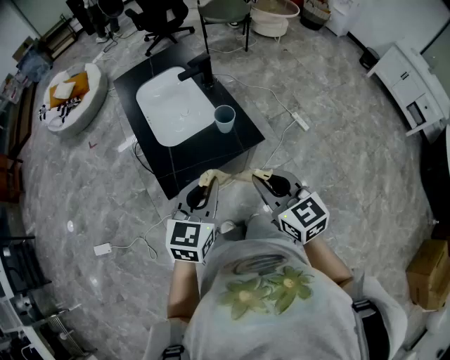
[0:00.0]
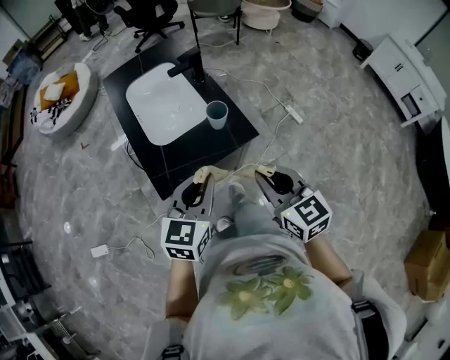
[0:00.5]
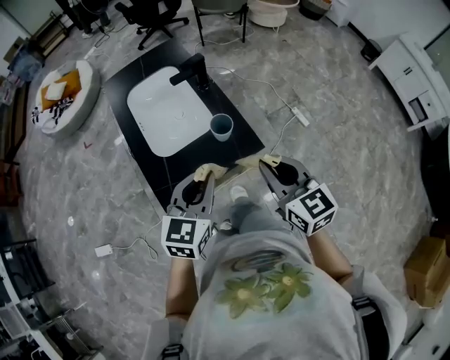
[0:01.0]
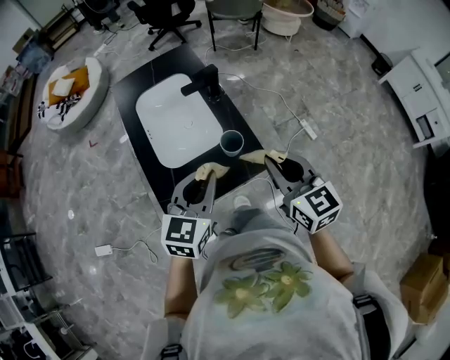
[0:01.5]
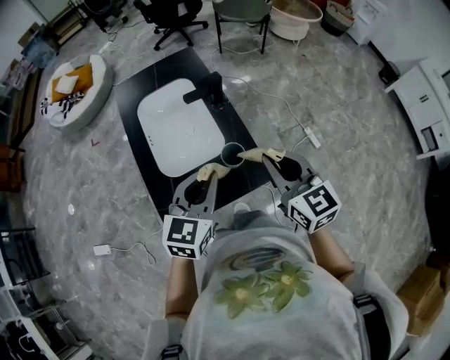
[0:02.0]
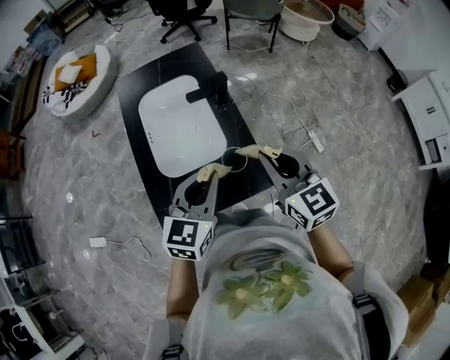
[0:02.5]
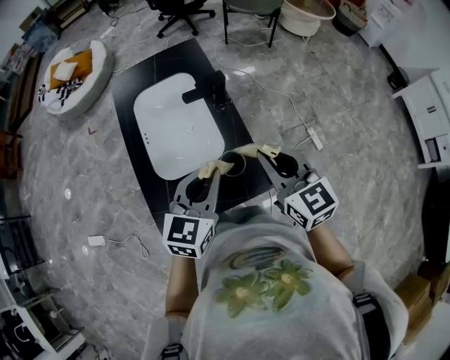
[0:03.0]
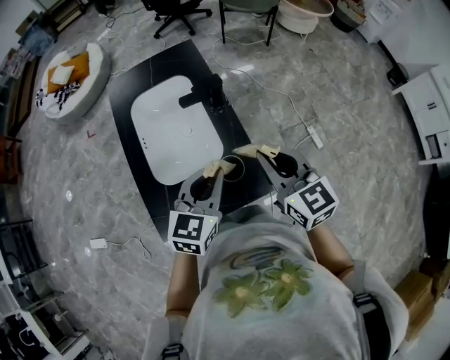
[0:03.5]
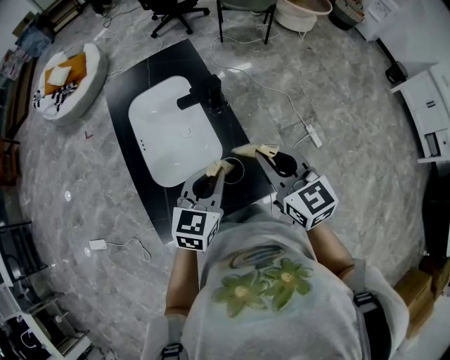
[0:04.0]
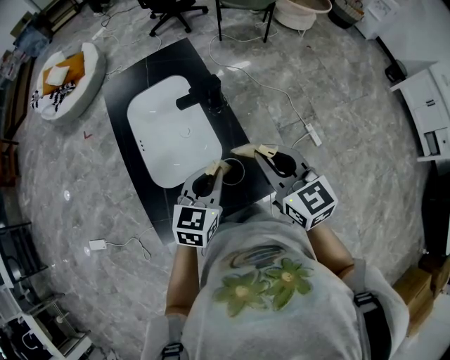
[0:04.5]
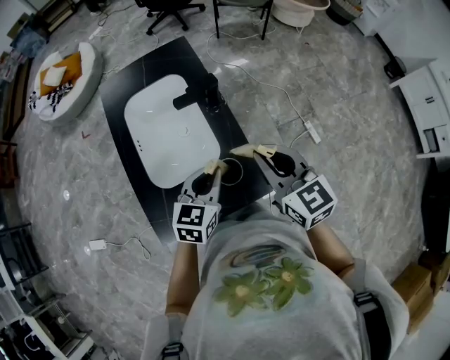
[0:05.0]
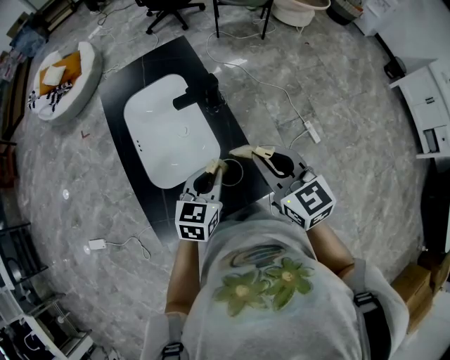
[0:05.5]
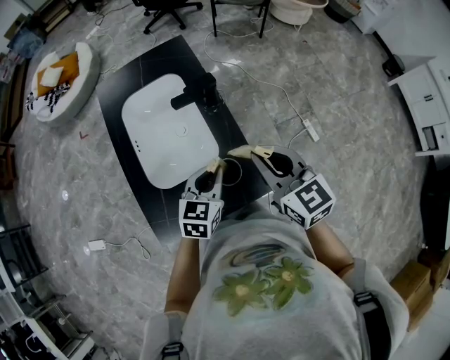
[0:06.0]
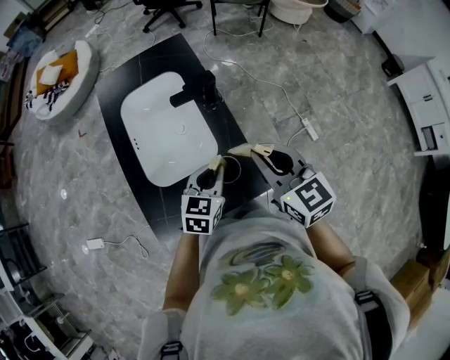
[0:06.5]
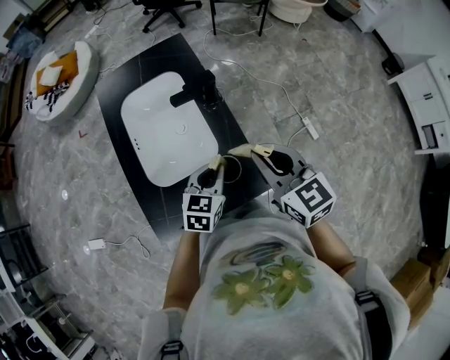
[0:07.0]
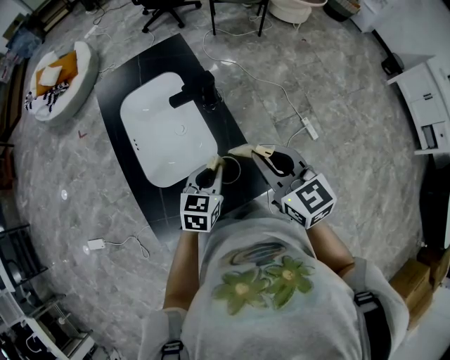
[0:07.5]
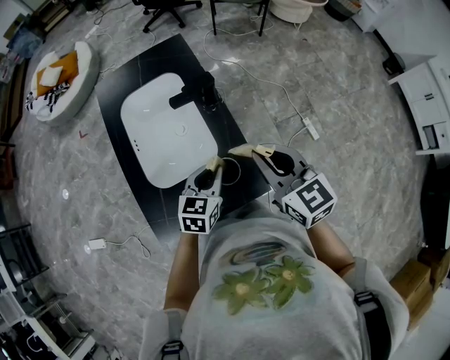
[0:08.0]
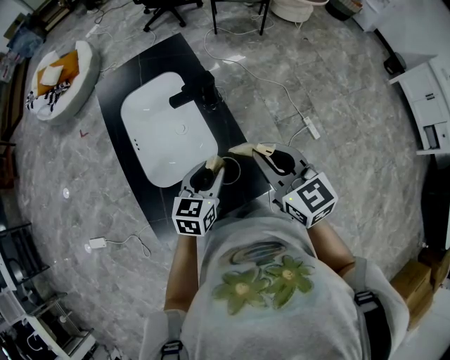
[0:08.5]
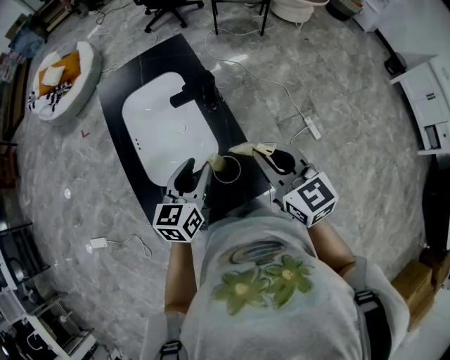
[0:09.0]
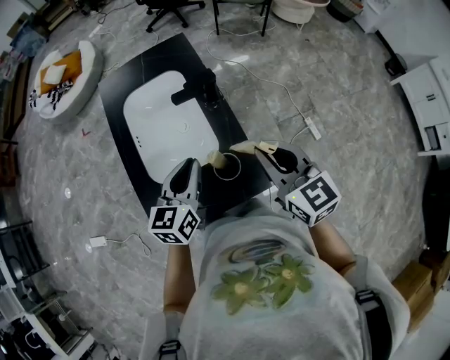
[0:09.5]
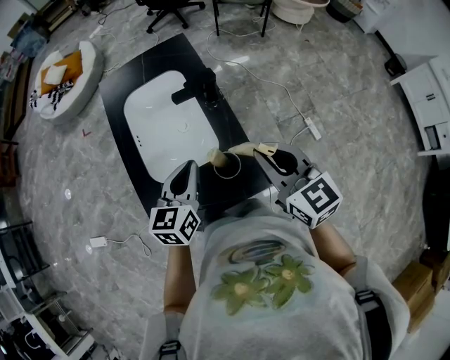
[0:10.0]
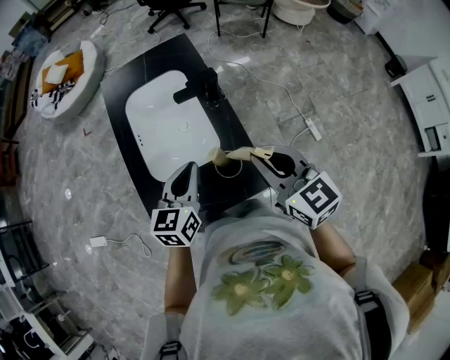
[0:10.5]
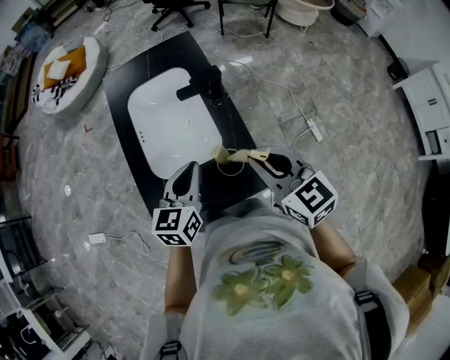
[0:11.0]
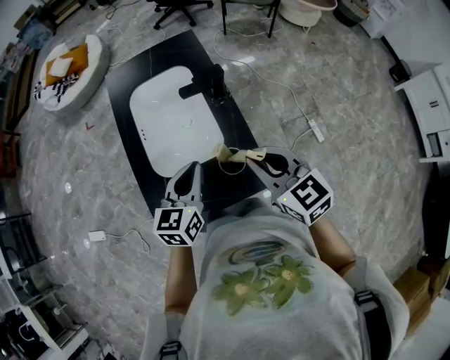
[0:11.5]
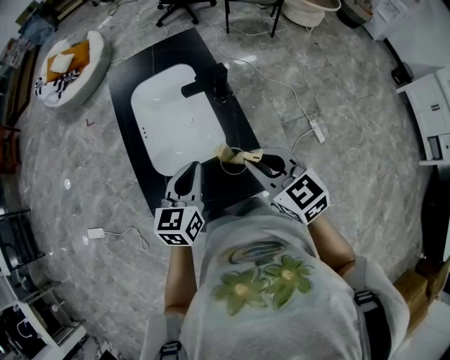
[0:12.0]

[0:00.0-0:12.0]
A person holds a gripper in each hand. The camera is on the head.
0:00.0 to 0:02.0: Both grippers move forward, some 25 cm.
0:02.0 to 0:04.0: The left gripper is displaced forward and downward by approximately 10 cm, while the right gripper heads forward, covering some 10 cm.
0:04.0 to 0:06.0: The left gripper is displaced downward by approximately 5 cm.
0:06.0 to 0:08.0: The grippers make only small movements.
0:08.0 to 0:10.0: The left gripper goes roughly 10 cm upward and to the left, and opens, then closes again.
0:10.0 to 0:12.0: The right gripper ends up about 5 cm from where it was.

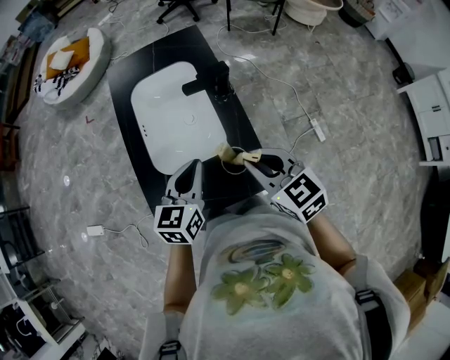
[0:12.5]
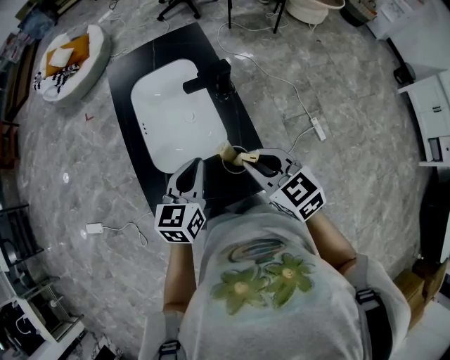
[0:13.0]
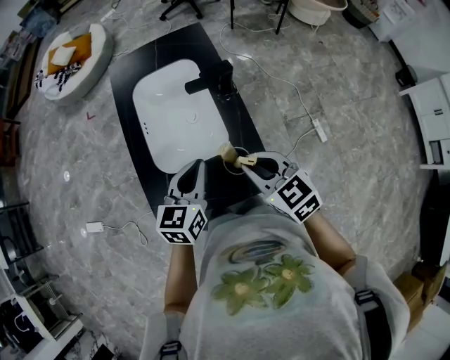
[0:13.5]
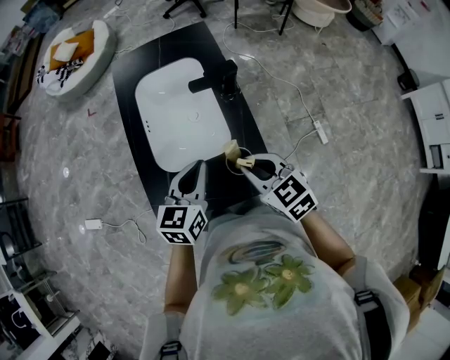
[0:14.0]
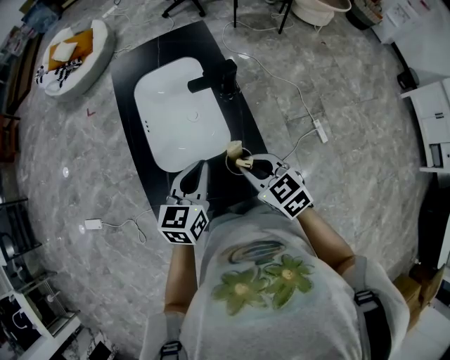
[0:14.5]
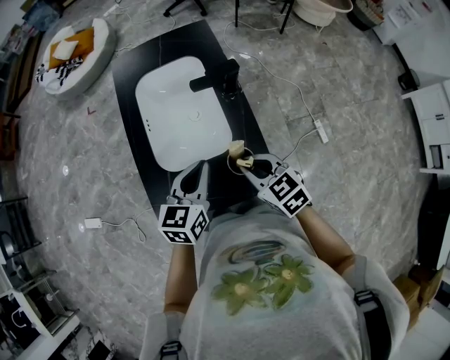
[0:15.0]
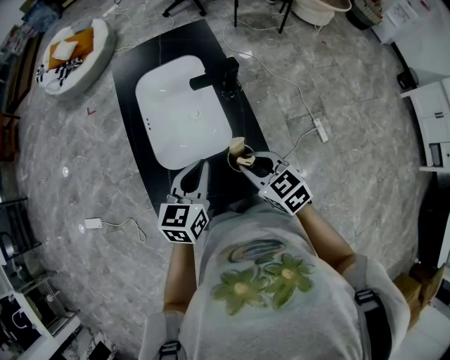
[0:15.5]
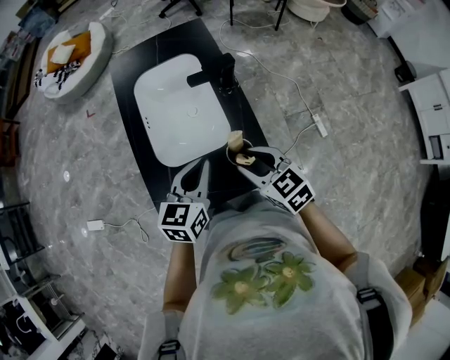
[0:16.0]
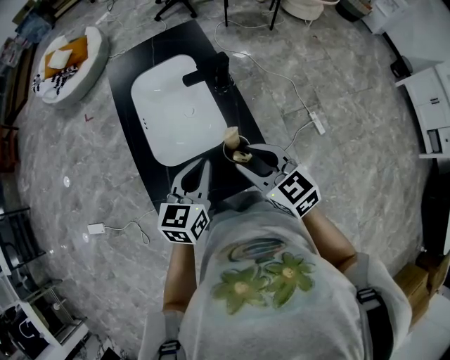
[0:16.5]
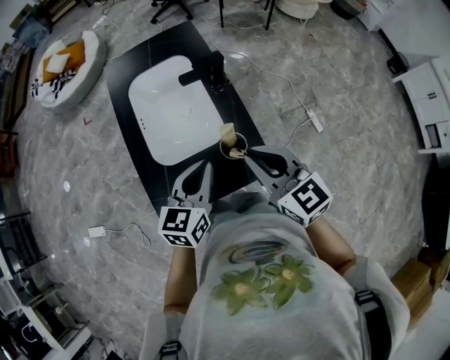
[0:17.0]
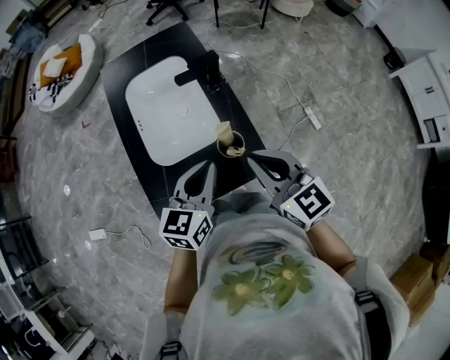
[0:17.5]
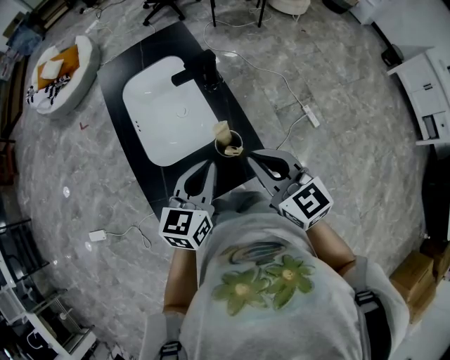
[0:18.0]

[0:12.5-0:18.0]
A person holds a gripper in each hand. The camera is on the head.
0:12.5 to 0:14.5: The right gripper travels downward by some 5 cm.
0:14.5 to 0:16.0: There are only small adjustments of the grippers.
0:16.0 to 0:18.0: The left gripper ends up roughly 5 cm from where it was. The right gripper heads upward, covering about 10 cm, rotates approximately 20 degrees, and closes up.

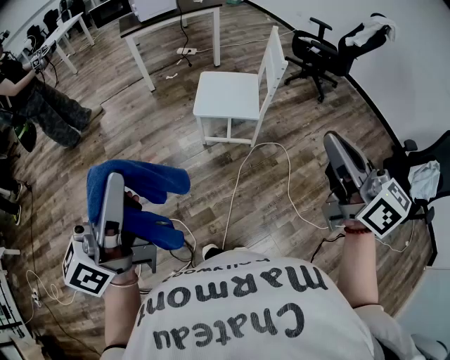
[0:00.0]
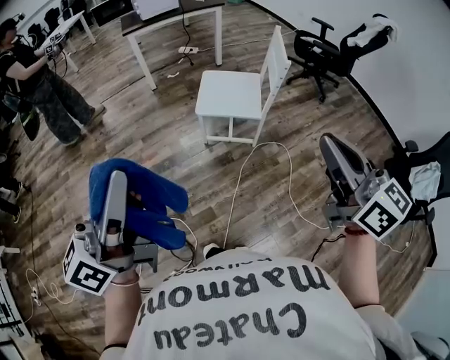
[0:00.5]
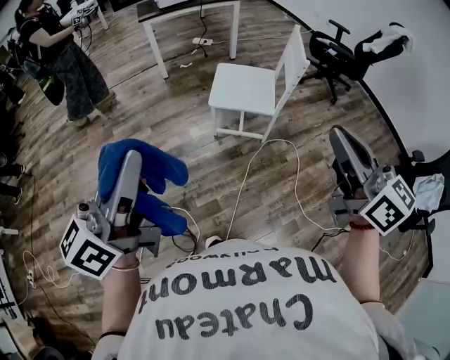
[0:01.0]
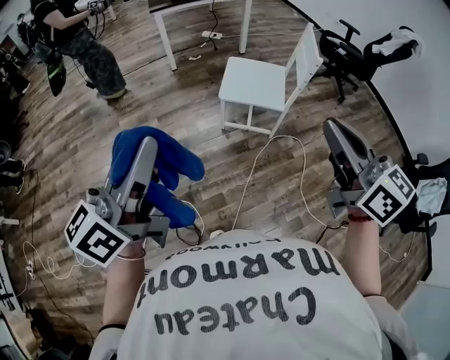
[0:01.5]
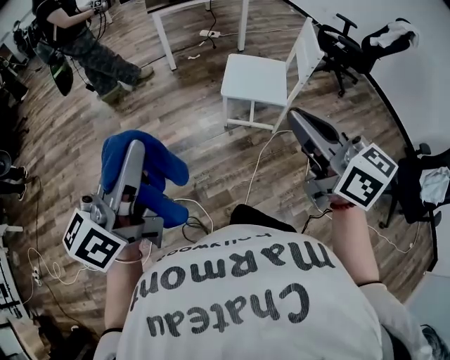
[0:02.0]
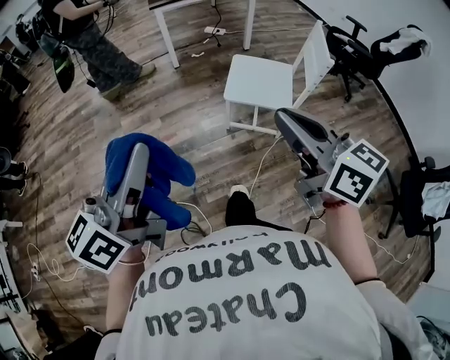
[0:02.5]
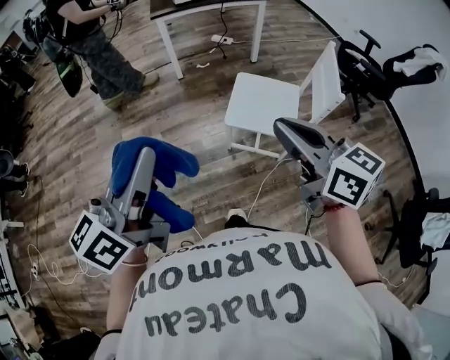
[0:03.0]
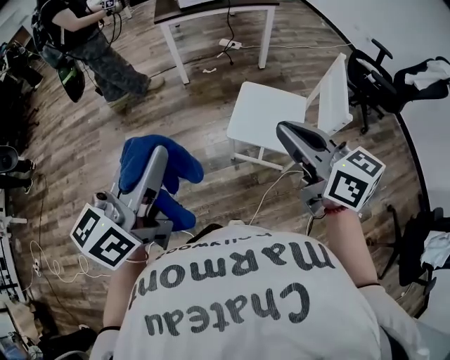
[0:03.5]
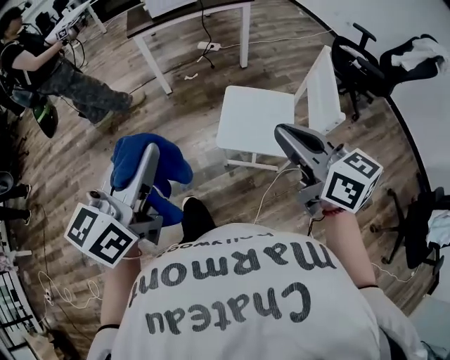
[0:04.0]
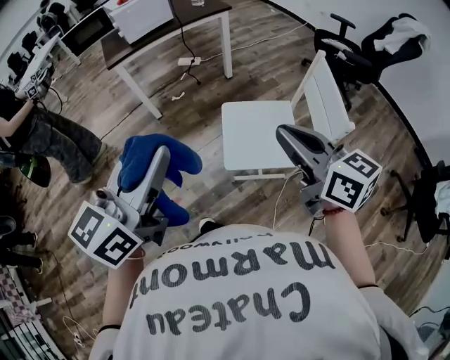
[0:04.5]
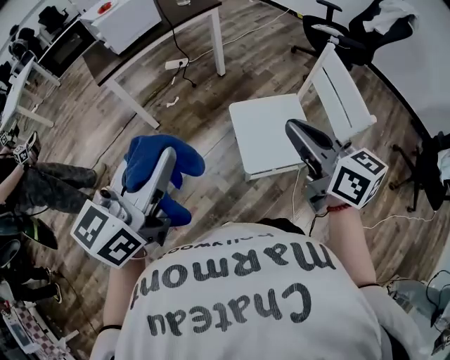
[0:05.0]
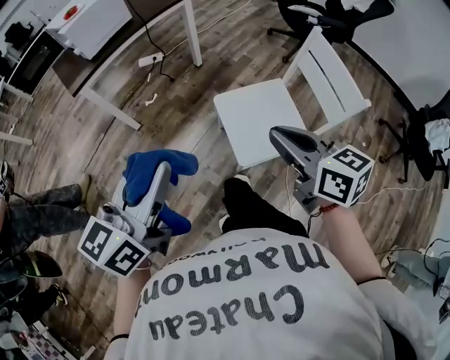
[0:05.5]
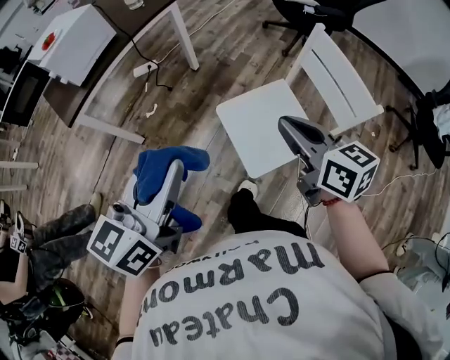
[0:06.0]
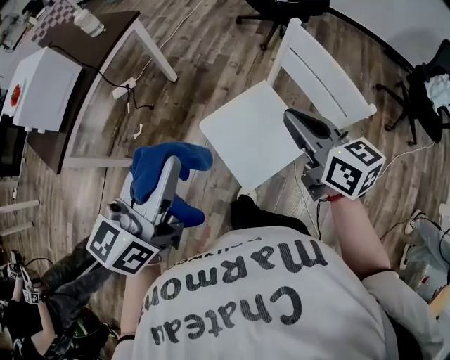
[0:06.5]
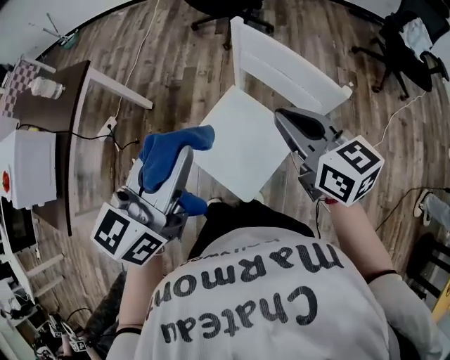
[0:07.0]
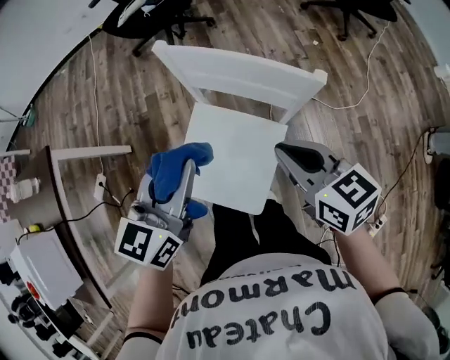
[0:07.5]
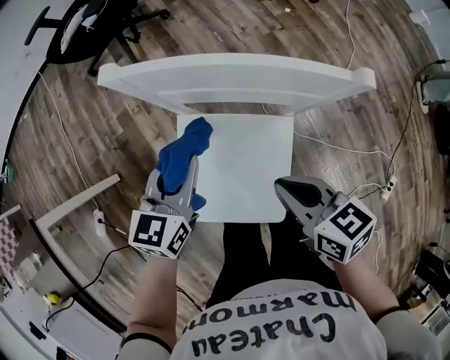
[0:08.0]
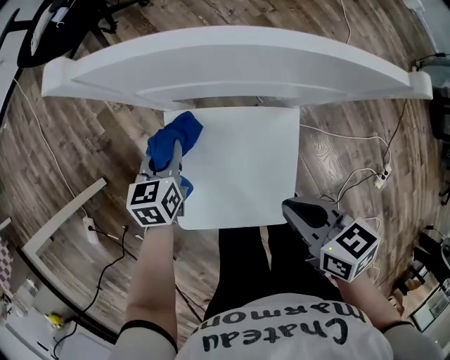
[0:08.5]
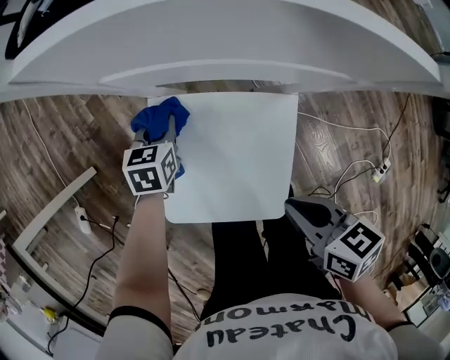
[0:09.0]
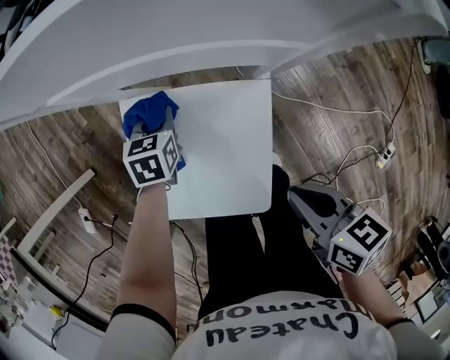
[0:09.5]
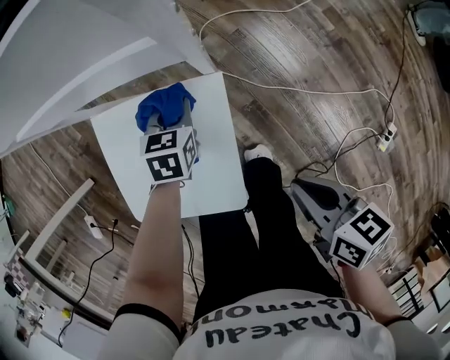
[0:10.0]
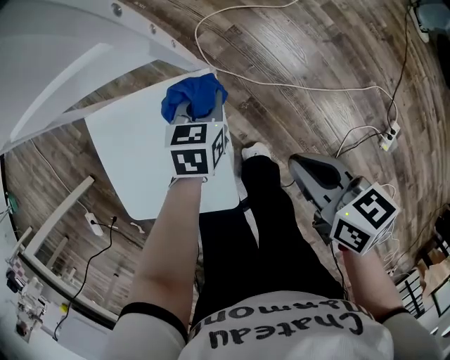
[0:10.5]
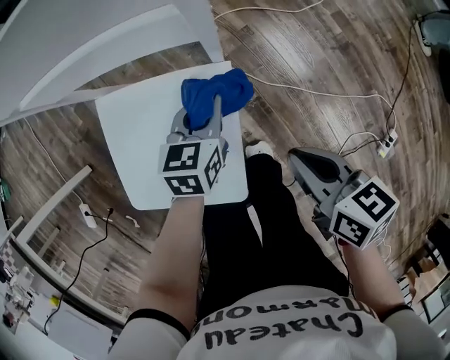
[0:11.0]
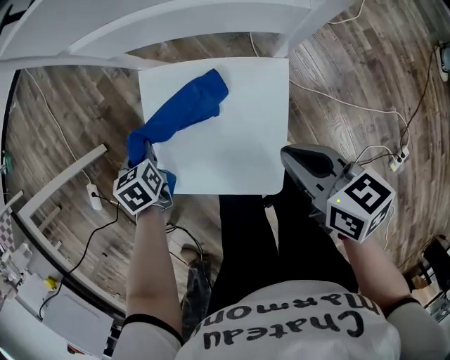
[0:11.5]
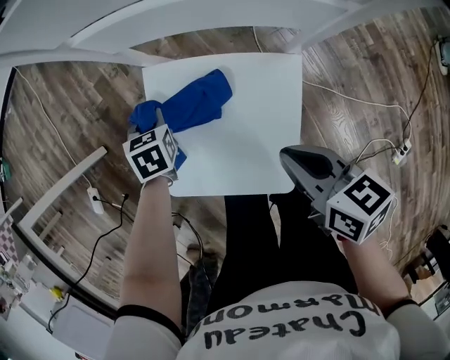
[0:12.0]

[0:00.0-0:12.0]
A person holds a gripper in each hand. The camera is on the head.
0:00.0 to 0:02.0: The left gripper travels to the left by approximately 10 cm; the right gripper moves to the left, about 20 cm.
0:02.0 to 0:04.0: The left gripper moves forward and to the right, approximately 35 cm. The right gripper travels forward by approximately 30 cm.
0:04.0 to 0:06.0: The right gripper changes place by roughly 30 cm, and turns by roughly 40 degrees; the left gripper changes place by roughly 35 cm, and swivels roughly 40 degrees.
0:06.0 to 0:08.0: The left gripper shifts by roughly 60 cm, and changes its angle by some 60 degrees. The right gripper goes some 20 cm downward, and turns by about 50 degrees.
0:08.0 to 0:10.0: The left gripper travels downward and to the right by about 30 cm, and rotates roughly 30 degrees, while the right gripper goes roughly 25 cm to the right, backward and downward, and turns by about 20 degrees.
0:10.0 to 0:12.0: The left gripper changes place by about 30 cm, and swivels about 20 degrees. The right gripper moves approximately 20 cm.
